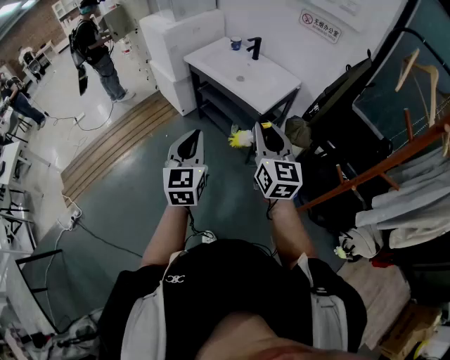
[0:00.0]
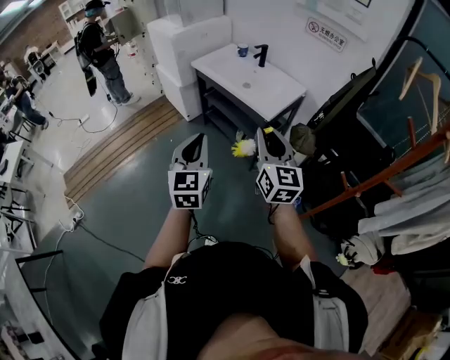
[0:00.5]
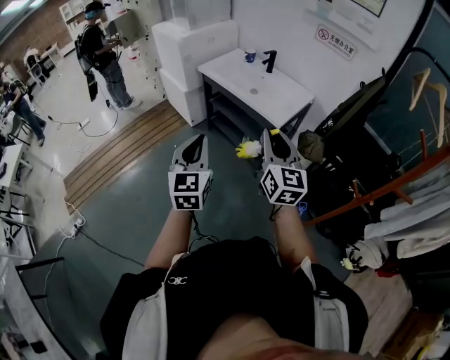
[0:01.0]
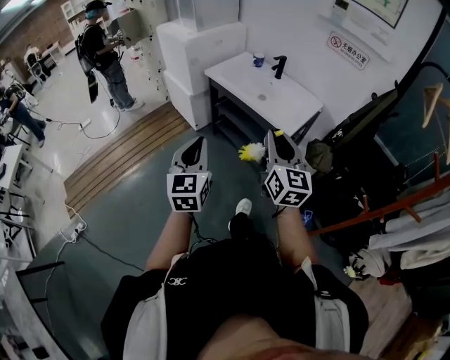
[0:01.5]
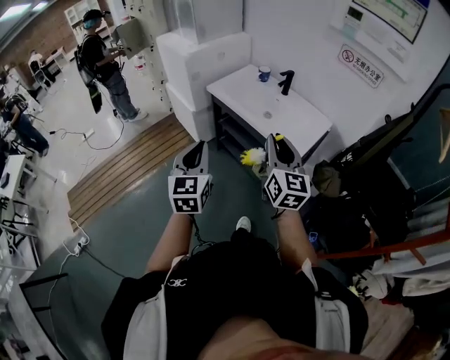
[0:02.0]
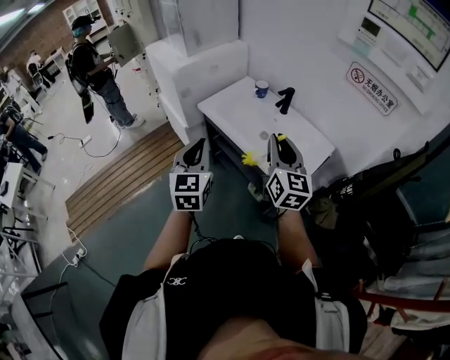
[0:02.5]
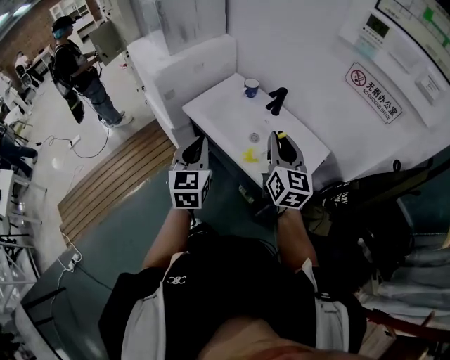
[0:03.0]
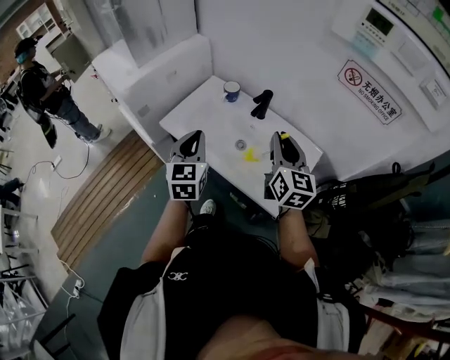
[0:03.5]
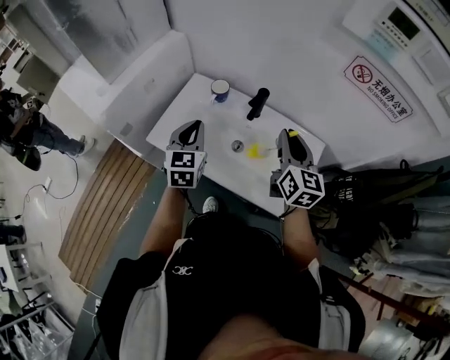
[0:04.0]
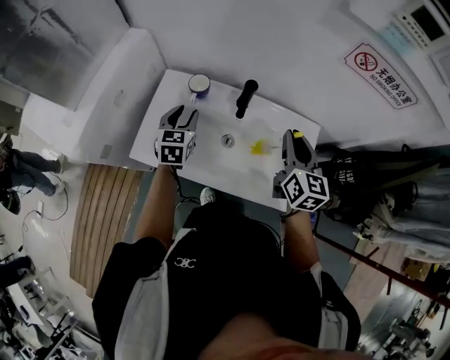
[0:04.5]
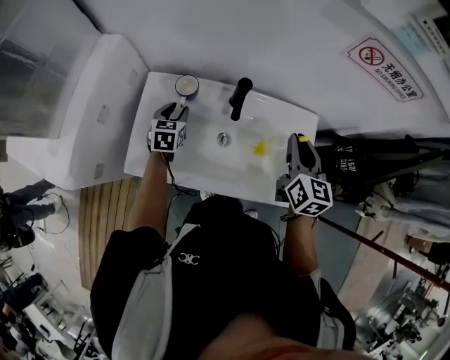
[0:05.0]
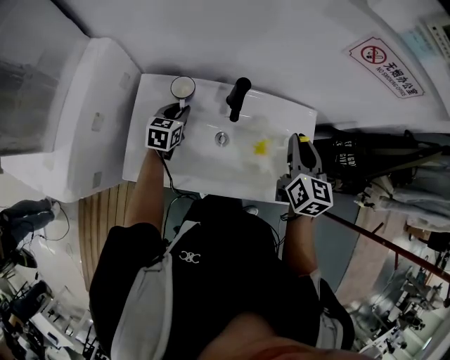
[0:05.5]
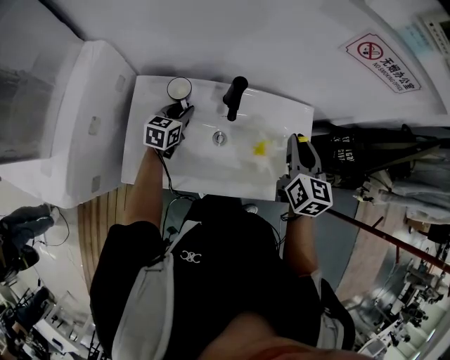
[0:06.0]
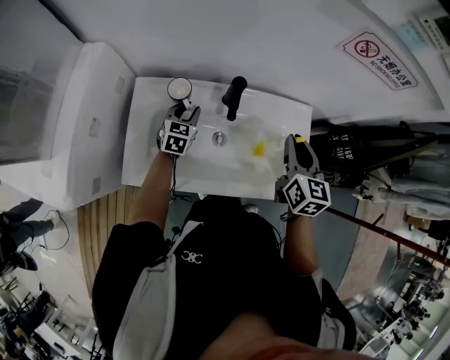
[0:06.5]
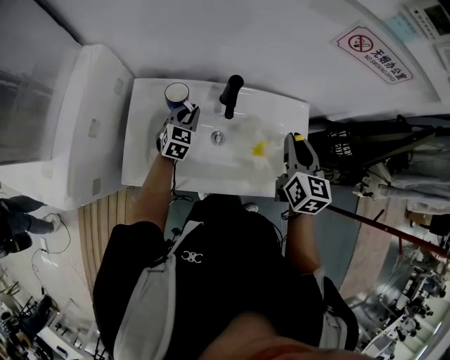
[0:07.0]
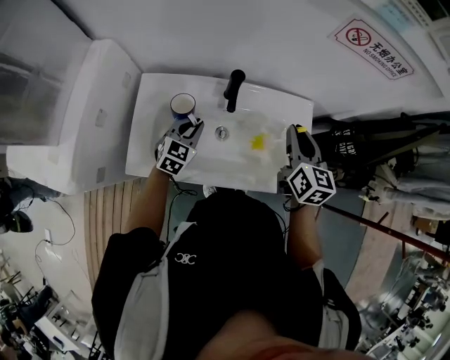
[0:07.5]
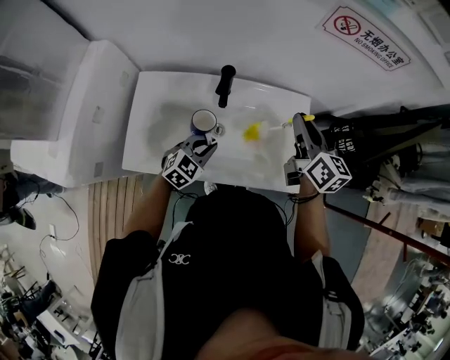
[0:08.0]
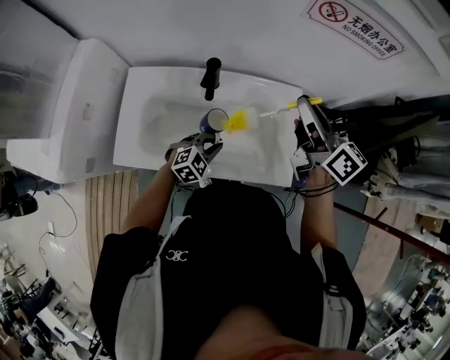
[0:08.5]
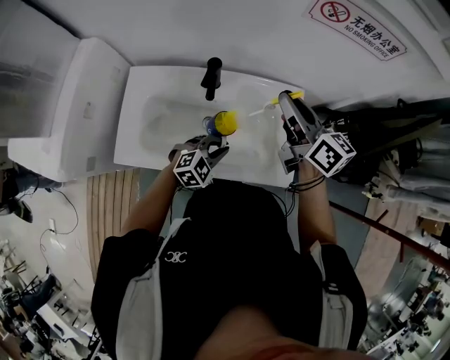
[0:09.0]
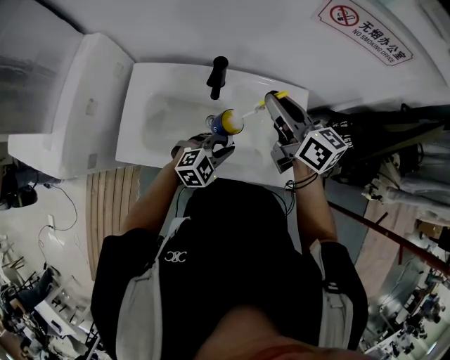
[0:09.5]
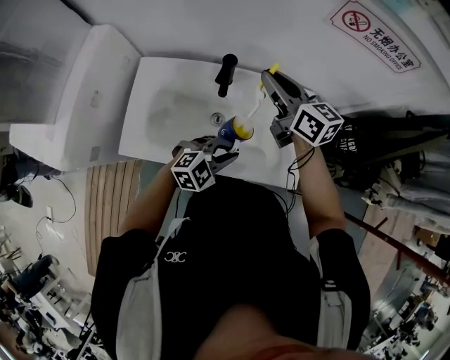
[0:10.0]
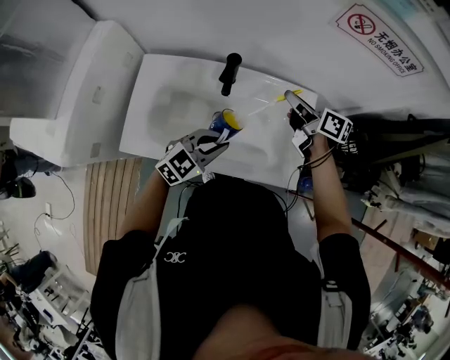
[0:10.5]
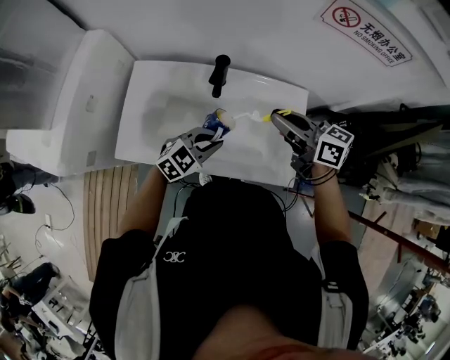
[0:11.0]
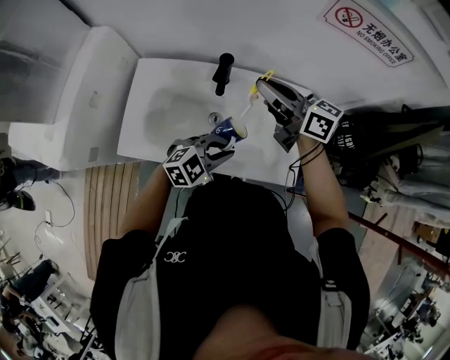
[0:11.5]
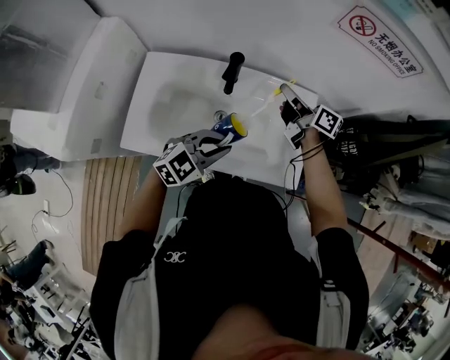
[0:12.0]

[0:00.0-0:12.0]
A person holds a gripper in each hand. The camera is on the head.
0:00.0 to 0:02.0: Both grippers move forward and to the left, approximately 25 cm.
0:02.0 to 0:04.0: The two grippers travel together, forward, approximately 50 cm. The right gripper changes its angle by some 20 degrees; the left gripper changes its angle by about 30 degrees.
0:04.0 to 0:06.0: The left gripper travels downward by some 20 cm, and rotates about 50 degrees, while the right gripper moves downward, approximately 5 cm, and swivels approximately 30 degrees.
0:06.0 to 0:08.0: The left gripper travels to the right and backward by roughly 20 cm, and rotates some 40 degrees, while the right gripper swivels about 20 degrees.
0:08.0 to 0:10.0: The right gripper shifts some 10 cm to the left, and rotates approximately 20 degrees. Meanwhile the left gripper shifts about 10 cm to the right, and swivels approximately 20 degrees.
0:10.0 to 0:12.0: The left gripper moves approximately 5 cm; the right gripper goes up and down, approximately 10 cm each way, reversing 2 times, and swivels roughly 30 degrees.

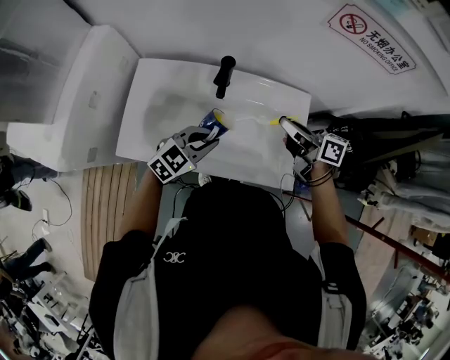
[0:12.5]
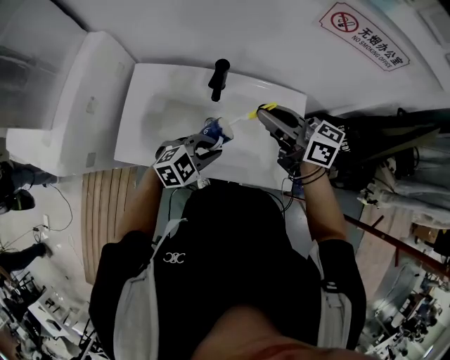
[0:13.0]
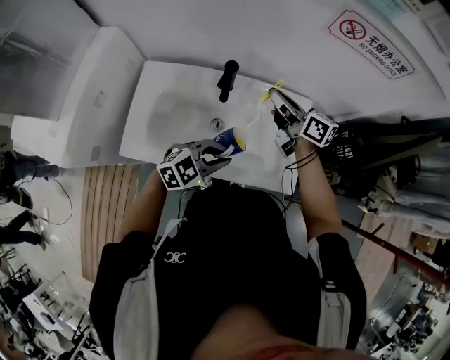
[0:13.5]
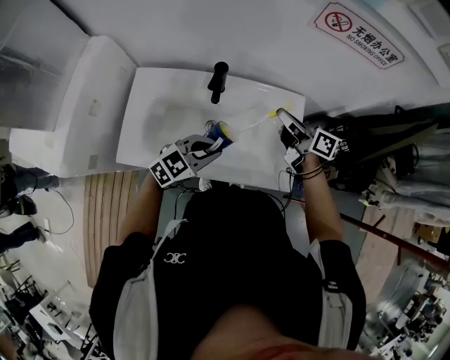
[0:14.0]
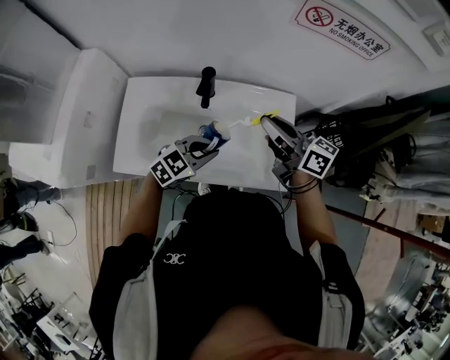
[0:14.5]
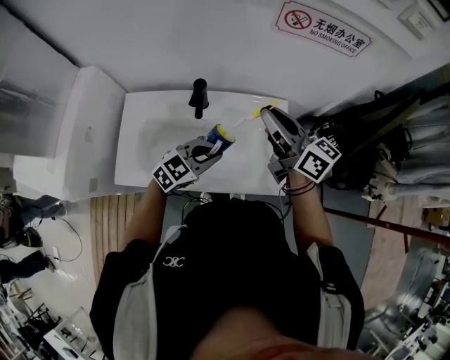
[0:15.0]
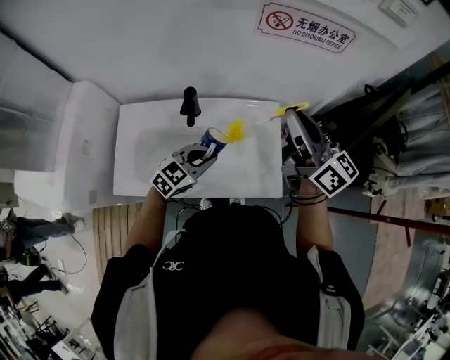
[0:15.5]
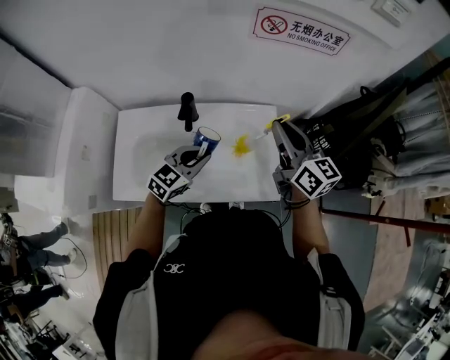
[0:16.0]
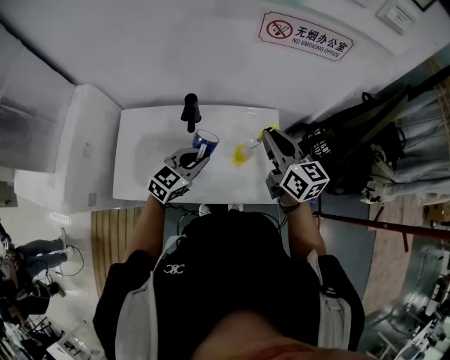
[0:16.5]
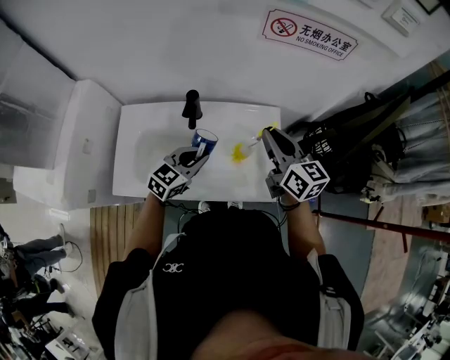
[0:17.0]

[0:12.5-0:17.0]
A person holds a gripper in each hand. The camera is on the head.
0:12.5 to 0:14.5: The right gripper moves up and down over some 10 cm, changing direction 2 times.
0:14.5 to 0:17.0: The right gripper moves to the right, some 5 cm, goes upward and returns, some 10 cm each way, and rotates about 30 degrees.

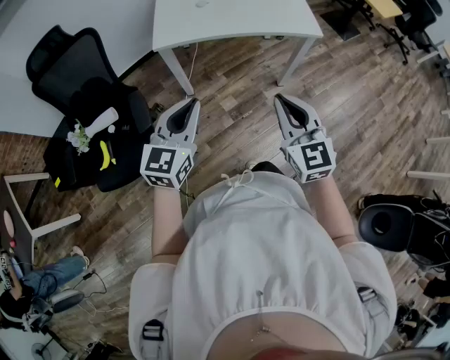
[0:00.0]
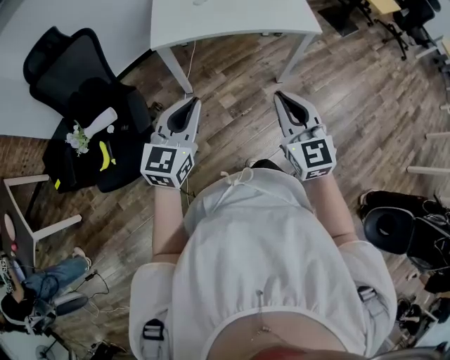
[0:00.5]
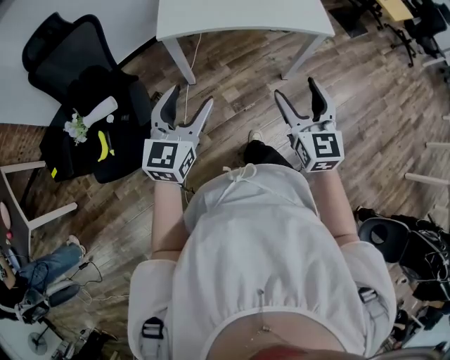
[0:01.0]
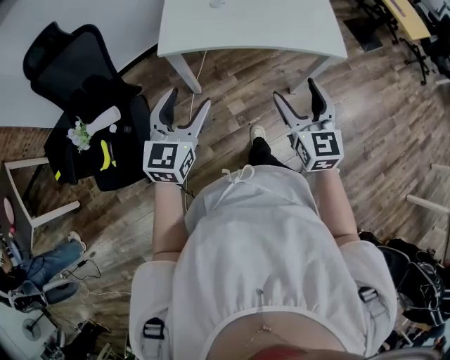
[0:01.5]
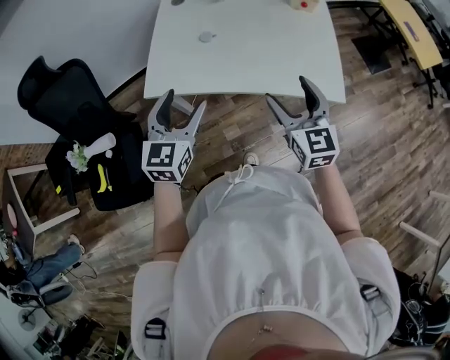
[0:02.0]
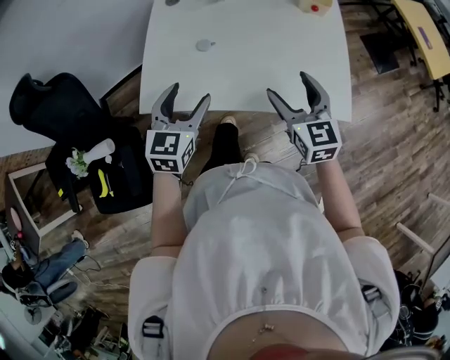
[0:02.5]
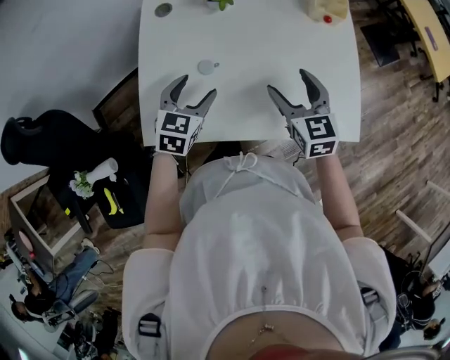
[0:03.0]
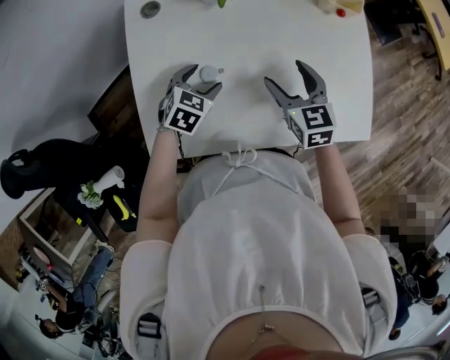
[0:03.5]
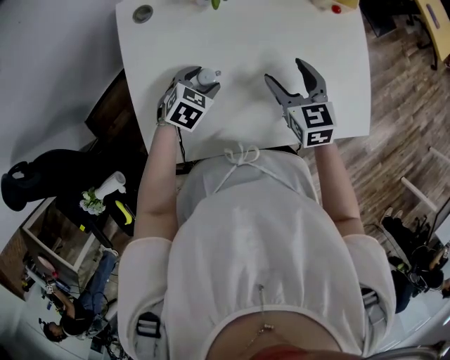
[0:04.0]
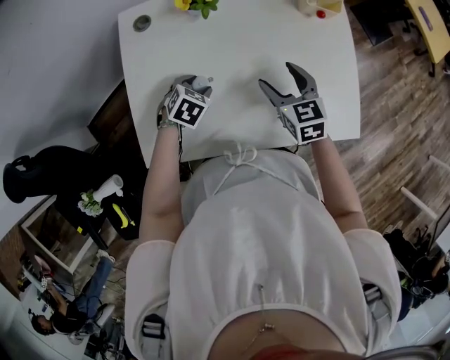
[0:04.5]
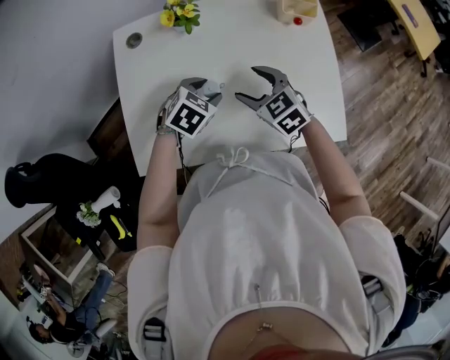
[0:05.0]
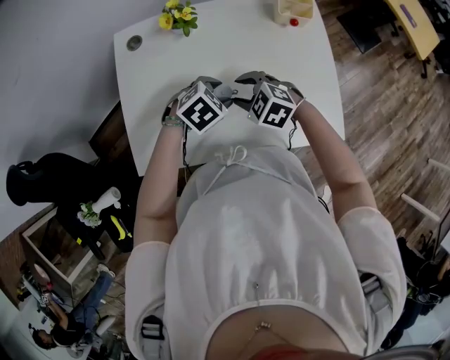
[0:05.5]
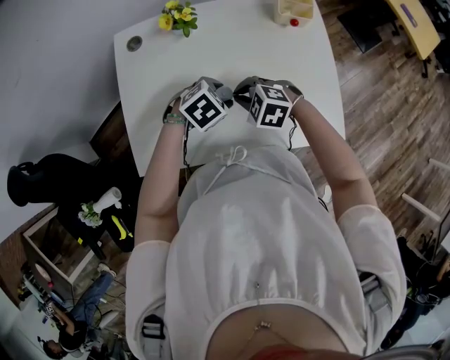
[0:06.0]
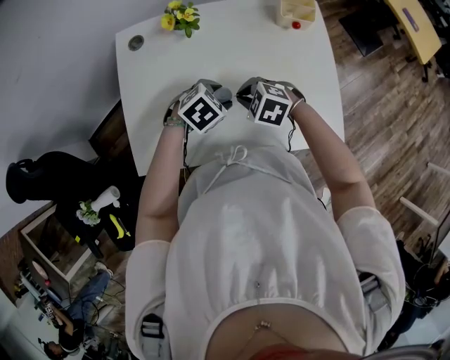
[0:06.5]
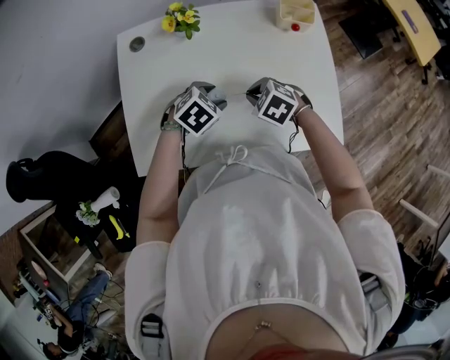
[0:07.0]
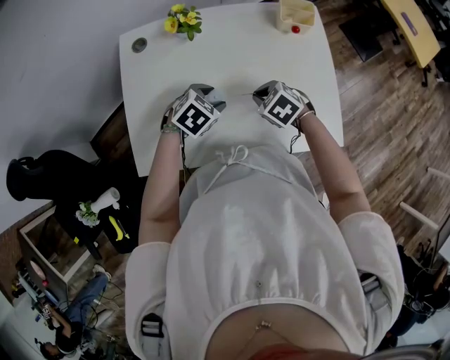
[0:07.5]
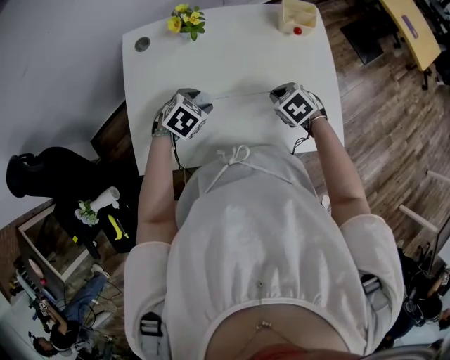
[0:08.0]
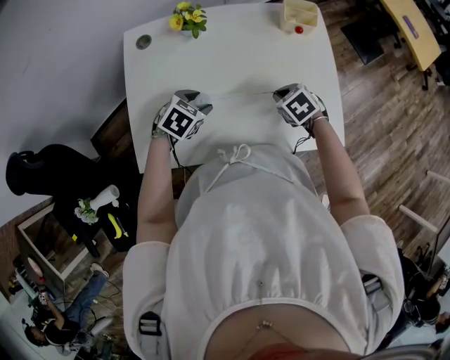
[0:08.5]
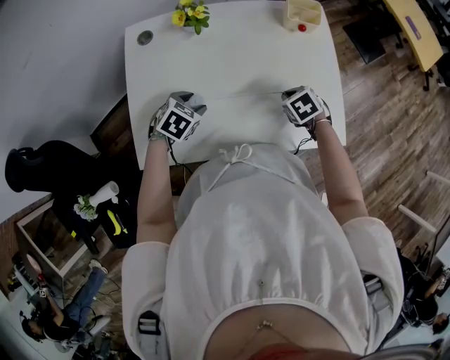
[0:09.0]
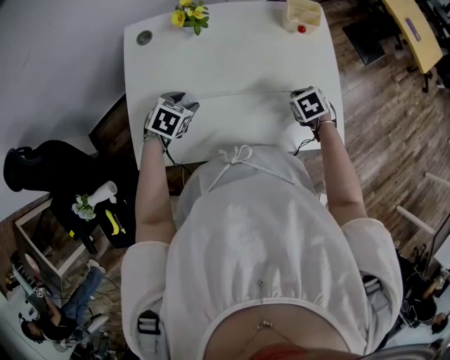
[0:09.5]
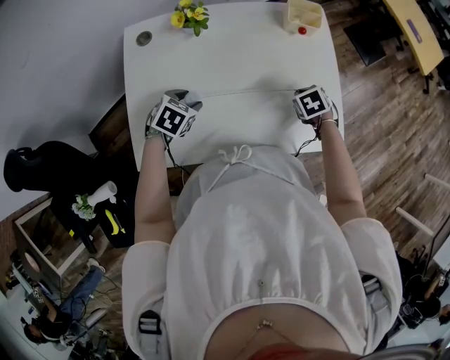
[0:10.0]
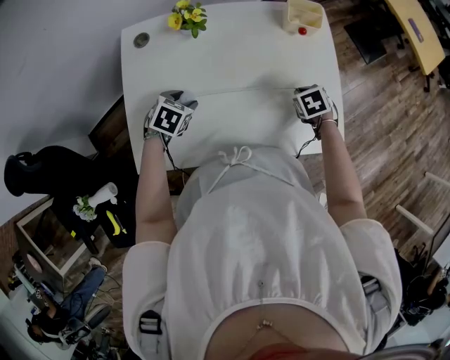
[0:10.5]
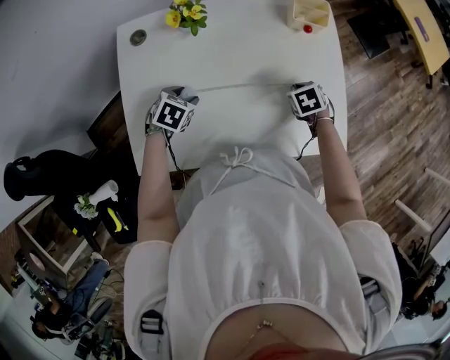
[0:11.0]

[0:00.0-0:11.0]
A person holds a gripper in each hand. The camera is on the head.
0:00.0 to 0:02.0: The grippers both shift forward by some 35 cm. The left gripper opens, while the right gripper opens up.
0:02.0 to 0:03.5: Both grippers travel together forward and downward, some 35 cm. The right gripper swivels about 20 degrees. The left gripper tilts its fingers approximately 40 degrees downward.
0:03.5 to 0:05.5: The right gripper changes its angle by roughly 50 degrees, and closes up, while the left gripper shifts about 15 cm to the right and upward, and turns by about 20 degrees.
0:05.5 to 0:07.5: The right gripper ends up approximately 5 cm from where it was, rotates roughly 20 degrees, and closes its fingers.
0:07.5 to 0:09.0: The left gripper shifts about 10 cm to the left; the right gripper heads to the right, covering some 10 cm, and turns by some 20 degrees.
0:09.0 to 0:11.0: The right gripper heads forward, covering some 5 cm; the left gripper changes place by some 5 cm.
